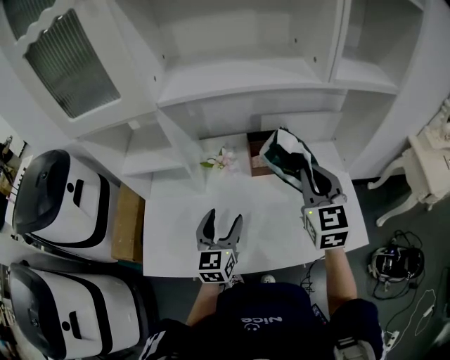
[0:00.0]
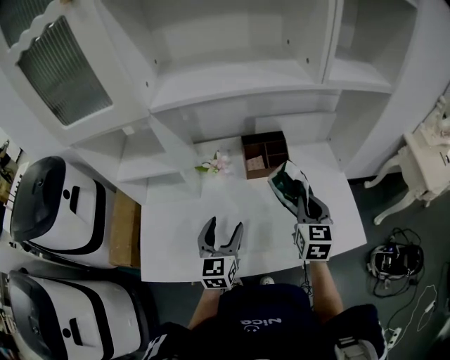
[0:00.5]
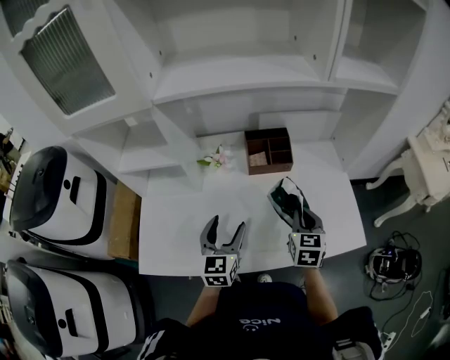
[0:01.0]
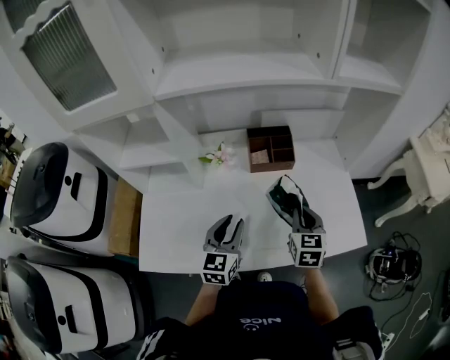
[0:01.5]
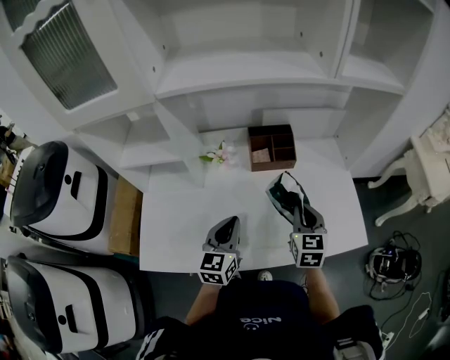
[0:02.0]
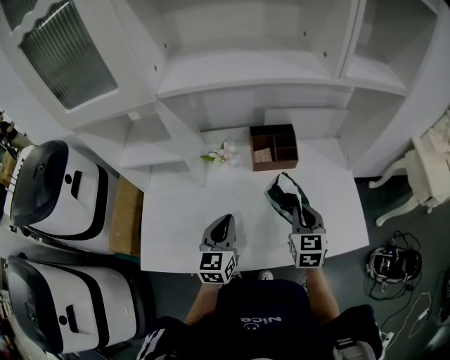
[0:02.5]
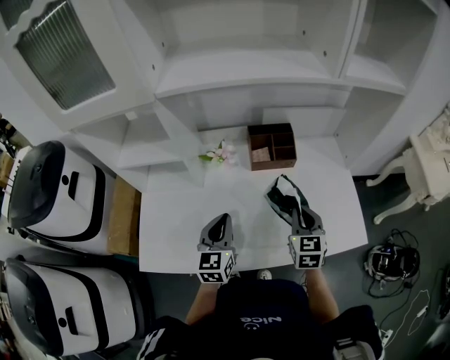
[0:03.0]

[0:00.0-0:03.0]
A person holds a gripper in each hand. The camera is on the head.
0:00.0 to 0:01.5: The left gripper moves about 5 cm, and closes its fingers, while the right gripper heads downward, covering approximately 20 cm, and swivels about 20 degrees.
0:01.5 to 0:03.0: The left gripper closes its fingers.

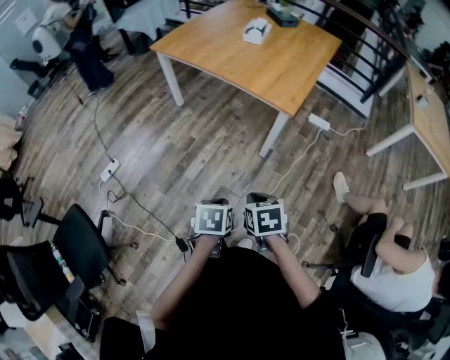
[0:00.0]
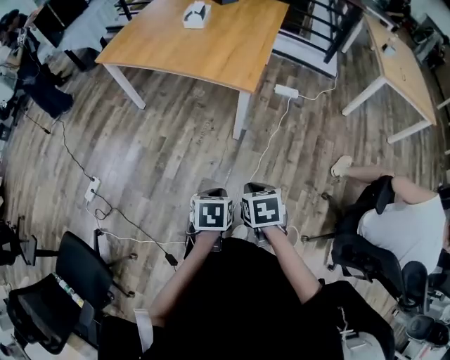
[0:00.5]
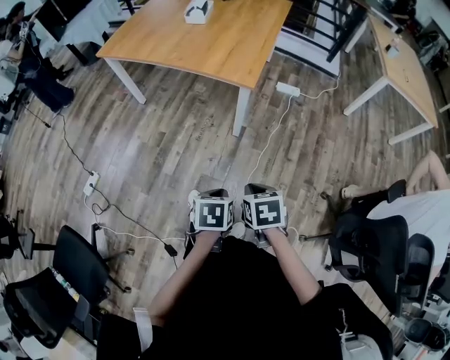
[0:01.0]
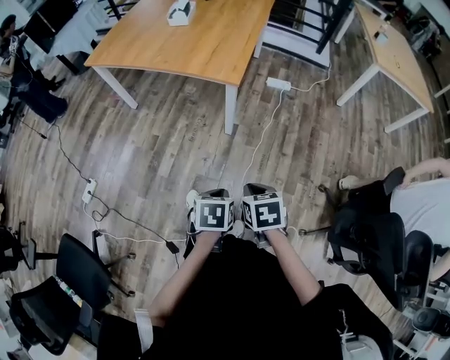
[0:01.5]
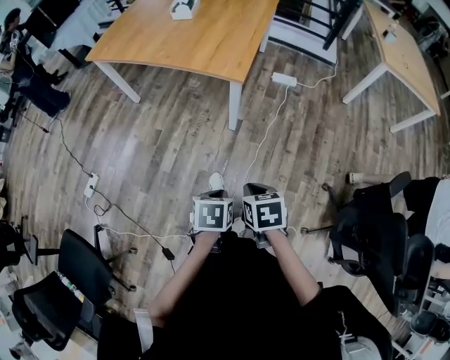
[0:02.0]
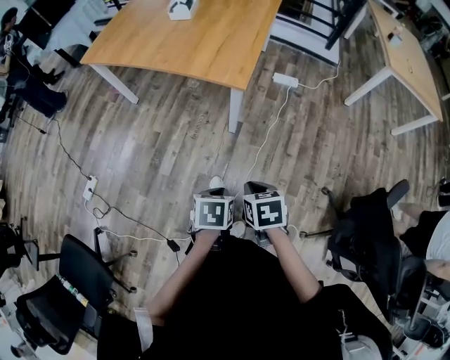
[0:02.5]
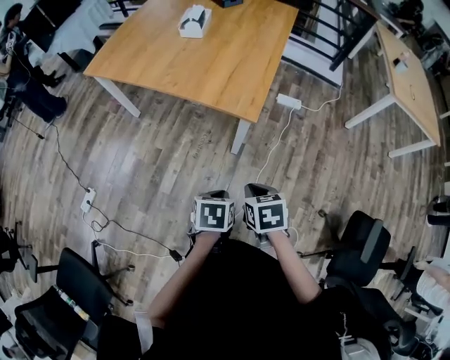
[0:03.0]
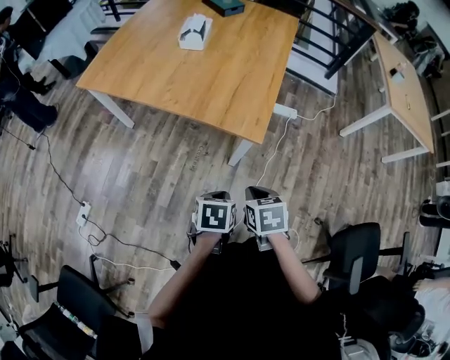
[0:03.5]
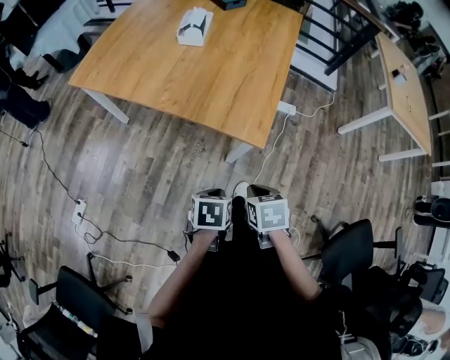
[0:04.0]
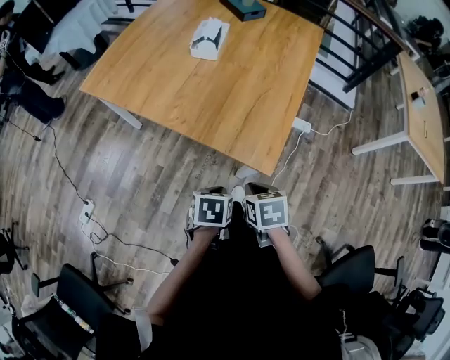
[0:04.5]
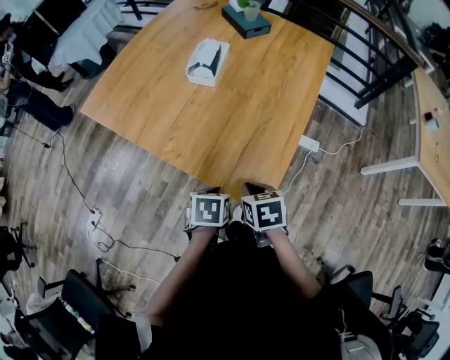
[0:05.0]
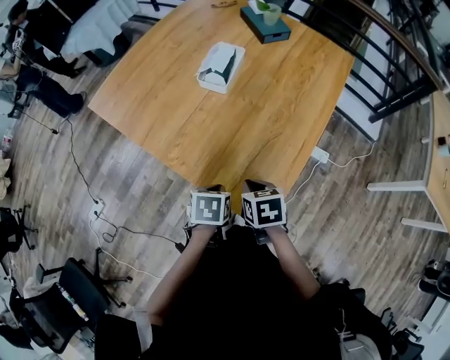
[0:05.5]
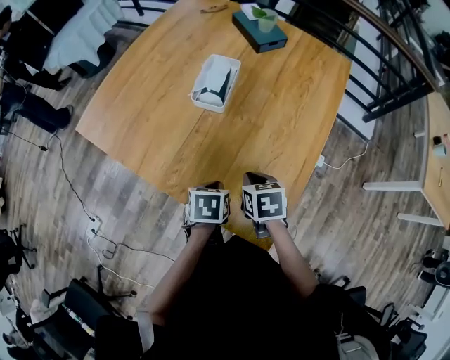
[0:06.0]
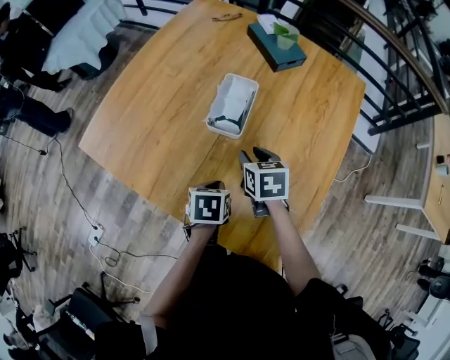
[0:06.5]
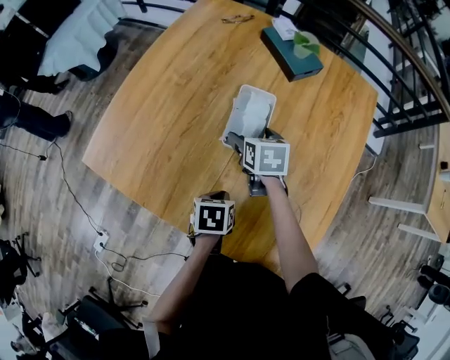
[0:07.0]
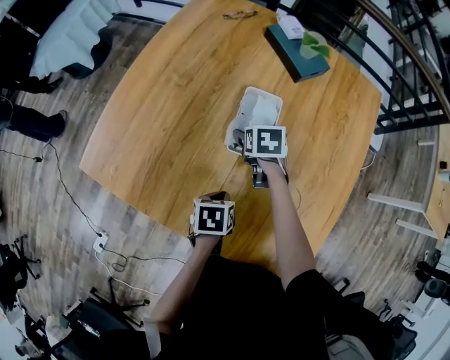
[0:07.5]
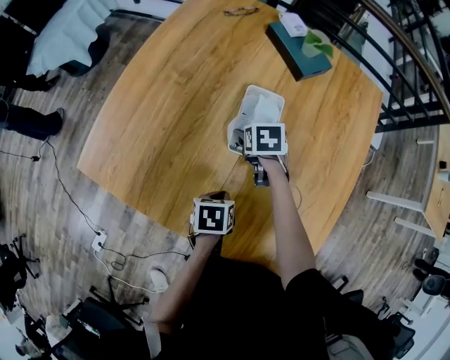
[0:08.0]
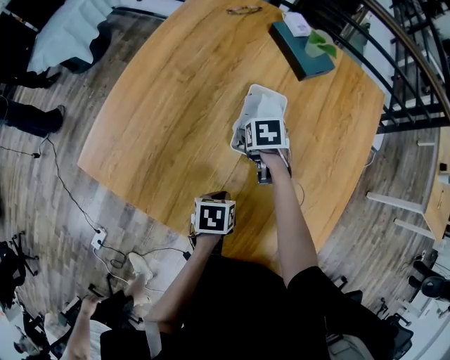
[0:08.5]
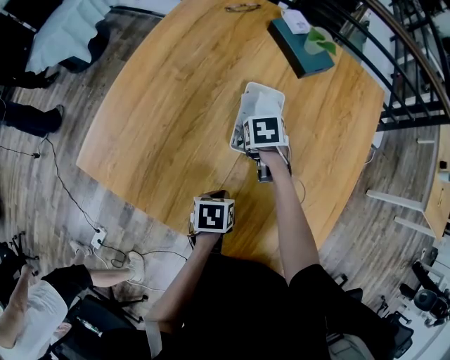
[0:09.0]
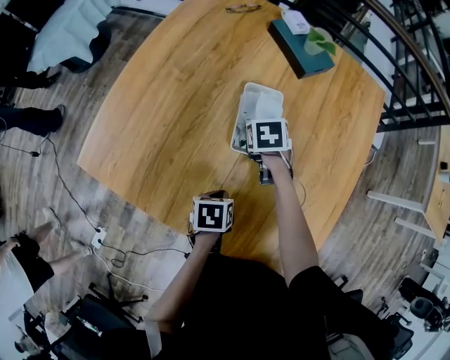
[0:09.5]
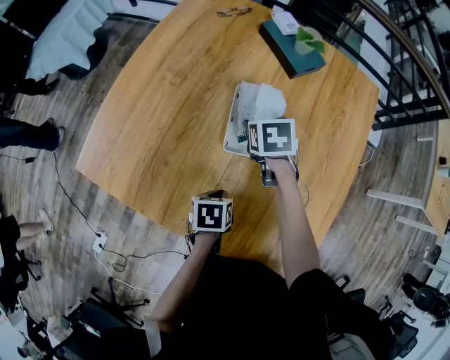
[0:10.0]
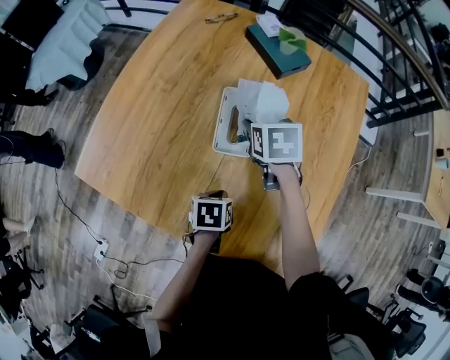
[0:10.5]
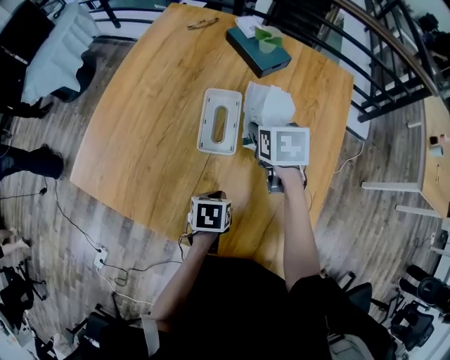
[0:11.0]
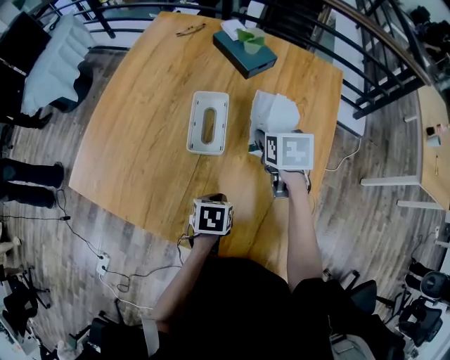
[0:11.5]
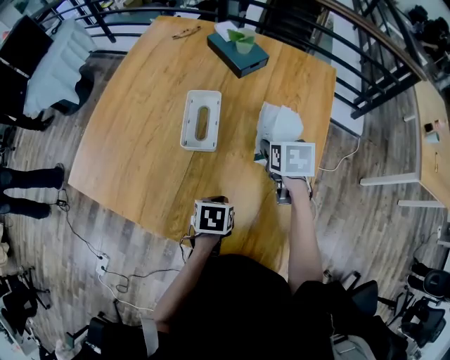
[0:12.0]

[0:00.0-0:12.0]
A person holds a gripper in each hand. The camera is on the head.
0:00.0 to 0:02.0: The two grippers go roughly 15 cm to the right.
0:02.0 to 0:04.0: Both grippers travel together forward, some 30 cm.
0:04.0 to 0:06.0: Both grippers travel together forward, about 40 cm.
0:06.0 to 0:08.0: The right gripper is displaced forward and to the left by about 35 cm, and opens its fingers. Meanwhile the left gripper goes about 20 cm to the left and forward.
0:08.0 to 0:10.0: The right gripper shifts about 5 cm upward, and closes.
0:10.0 to 0:12.0: The right gripper moves to the right, some 20 cm; the left gripper travels to the right by approximately 15 cm.

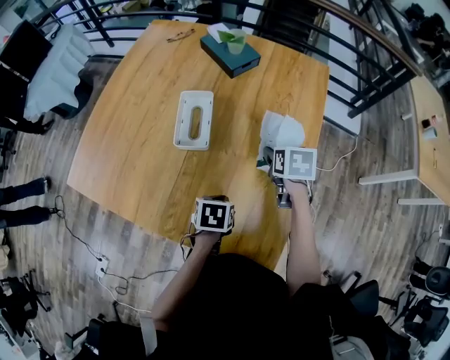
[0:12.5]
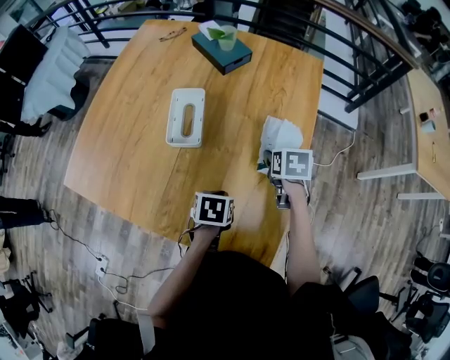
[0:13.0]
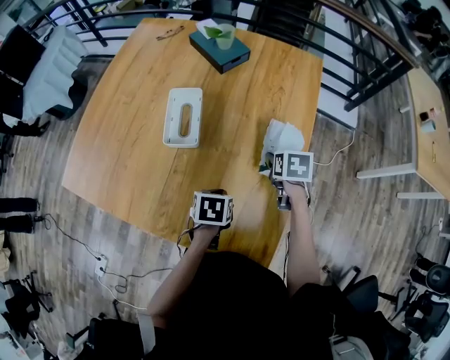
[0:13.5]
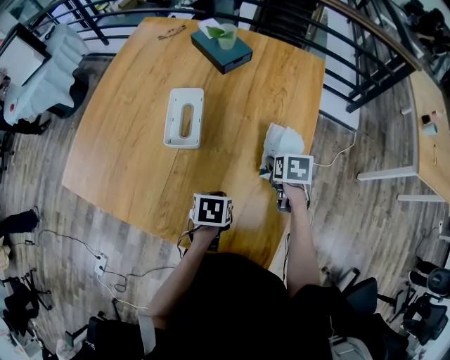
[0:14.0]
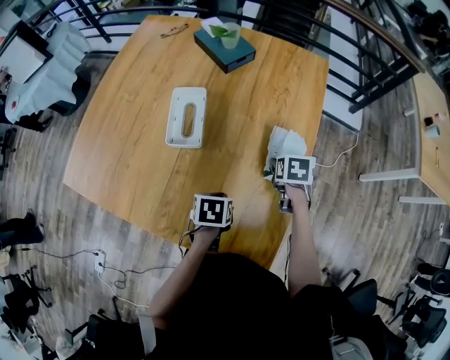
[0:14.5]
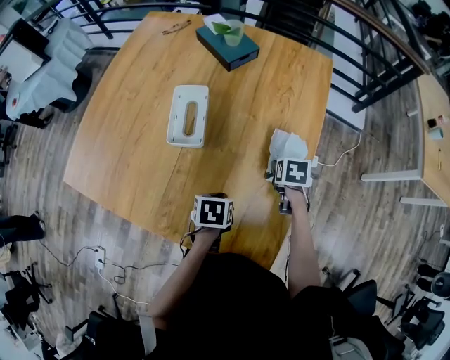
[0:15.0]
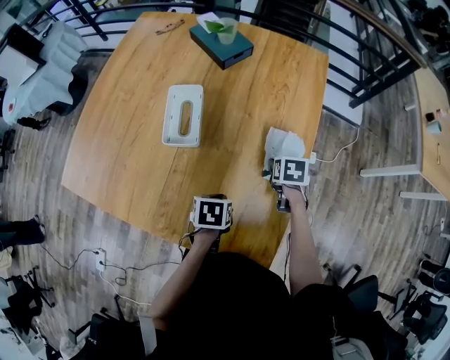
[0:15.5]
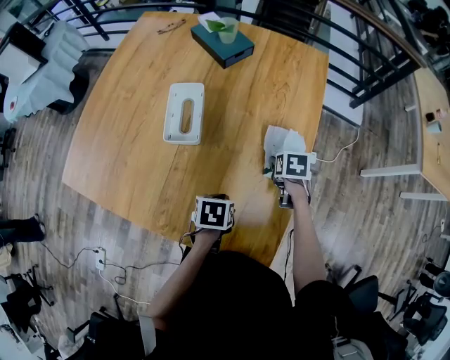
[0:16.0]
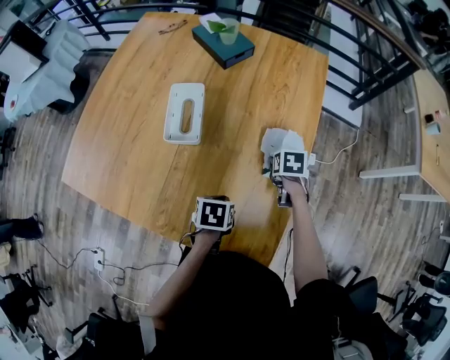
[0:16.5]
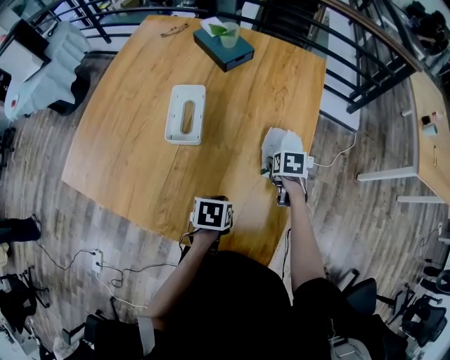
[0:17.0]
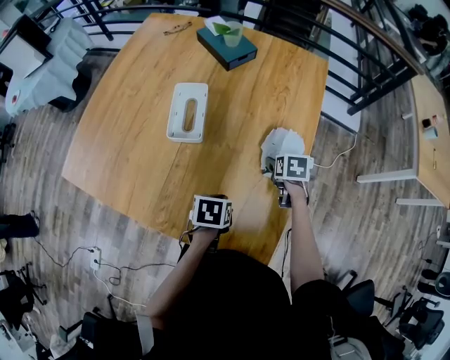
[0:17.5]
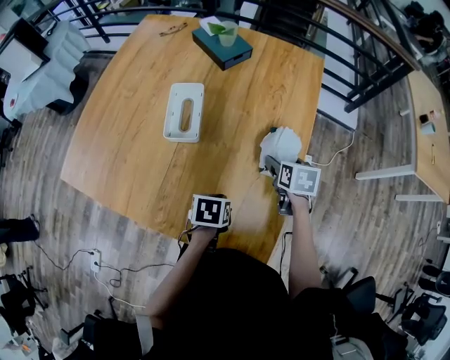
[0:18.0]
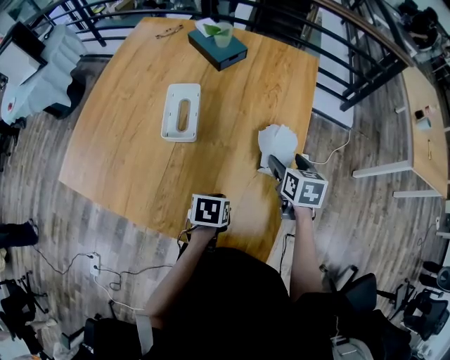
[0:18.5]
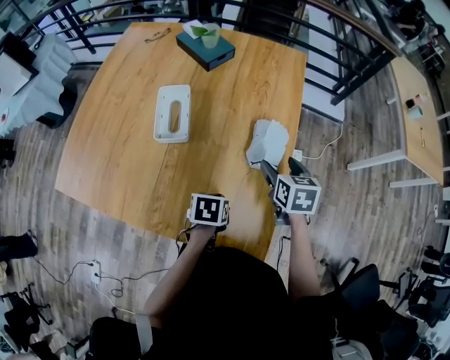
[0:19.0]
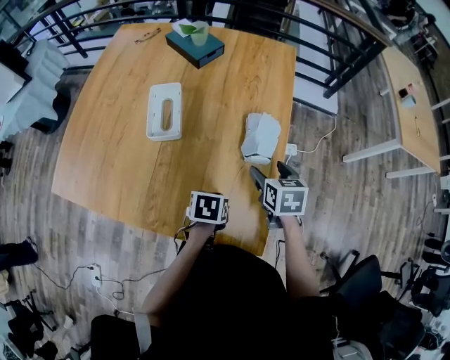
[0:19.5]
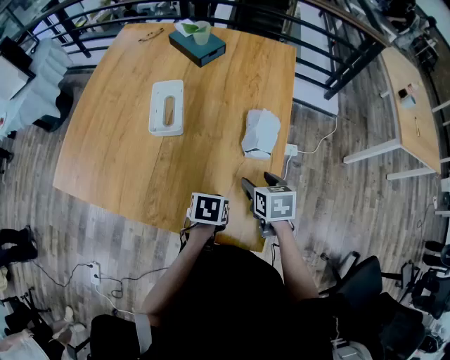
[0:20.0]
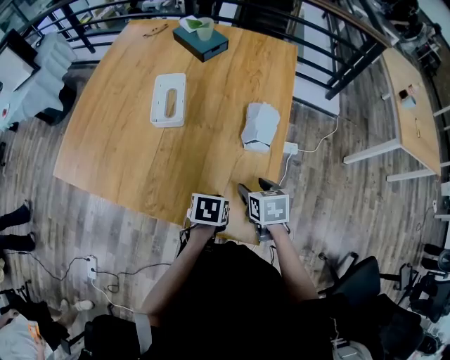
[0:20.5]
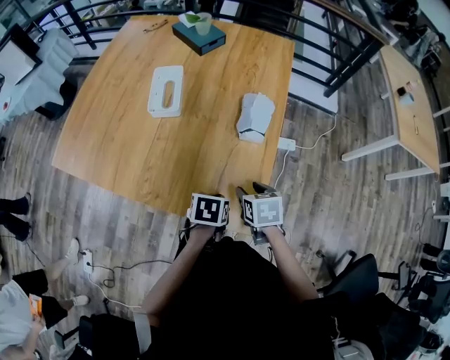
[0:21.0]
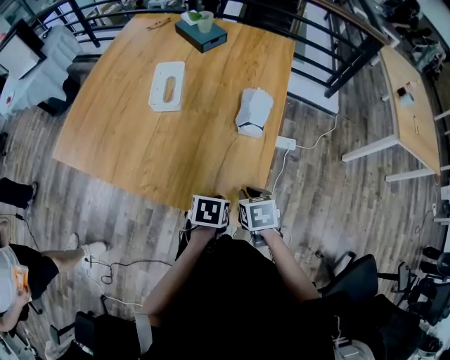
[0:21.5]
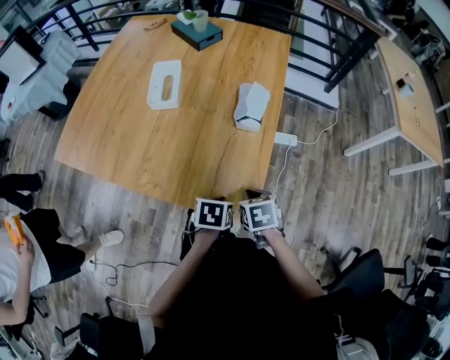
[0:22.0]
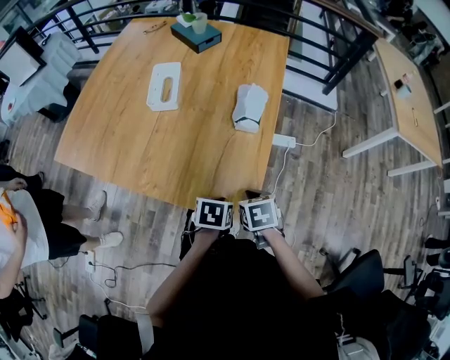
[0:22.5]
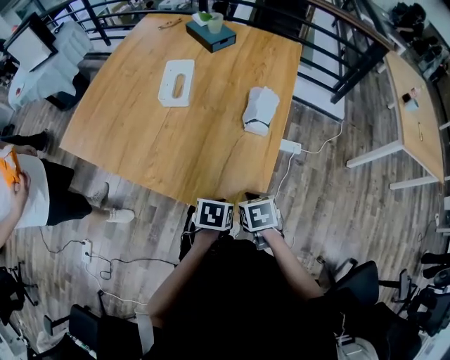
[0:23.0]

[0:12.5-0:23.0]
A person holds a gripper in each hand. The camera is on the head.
0:12.5 to 0:14.5: The right gripper goes approximately 10 cm downward and to the right.
0:14.5 to 0:16.5: There are only small adjustments of the grippers.
0:16.5 to 0:19.0: The right gripper travels upward and backward by roughly 15 cm, and changes its angle by about 30 degrees.
0:19.0 to 0:21.0: The left gripper moves backward and to the right, approximately 10 cm, while the right gripper travels backward and downward by approximately 20 cm.
0:21.0 to 0:23.0: Both grippers travel together backward, some 5 cm. The right gripper closes up.

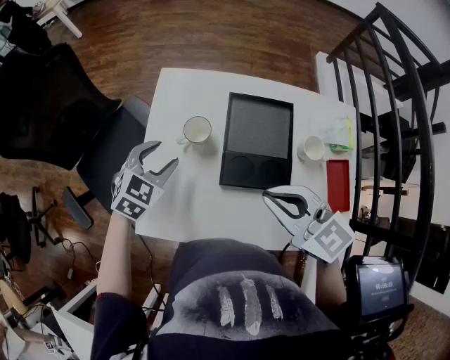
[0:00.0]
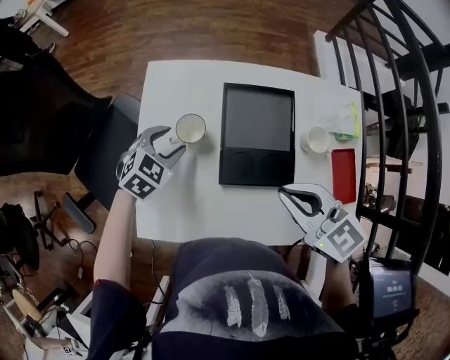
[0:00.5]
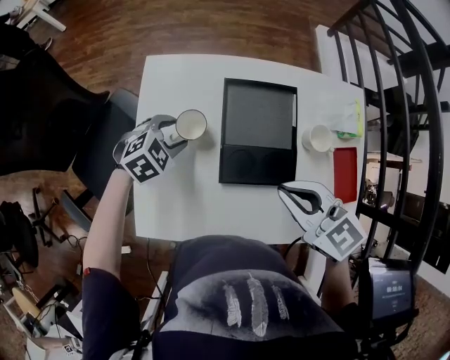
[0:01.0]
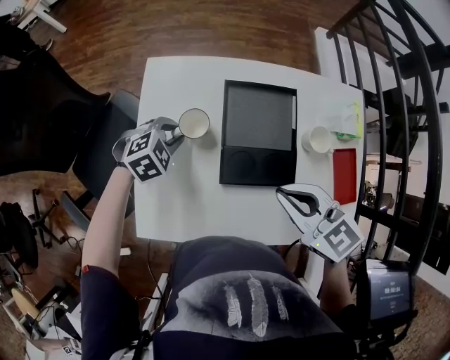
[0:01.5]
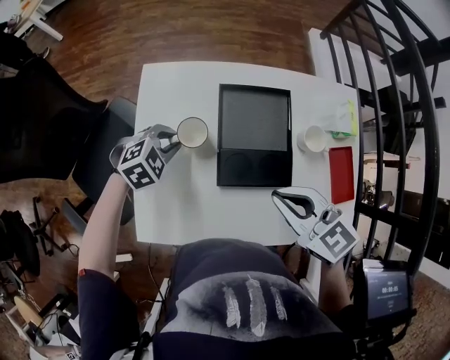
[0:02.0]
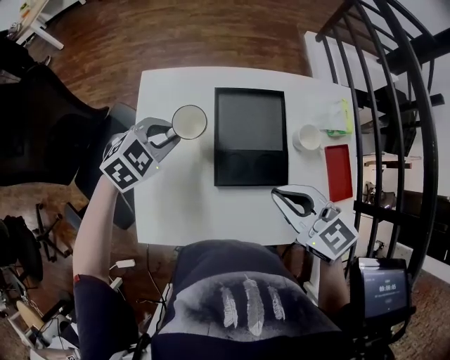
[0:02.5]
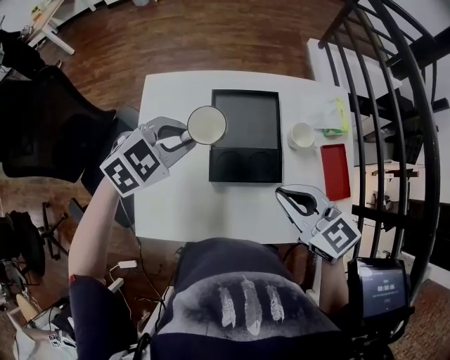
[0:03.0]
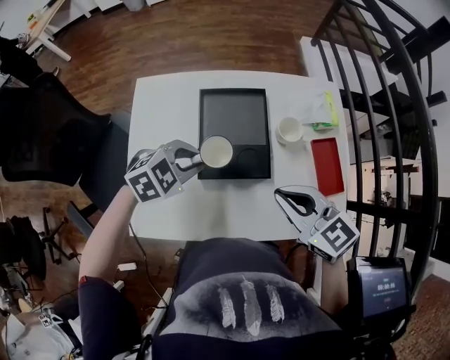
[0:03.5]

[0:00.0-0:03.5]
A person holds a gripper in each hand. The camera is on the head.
0:00.0 to 0:02.0: The left gripper is displaced downward by approximately 5 cm, rotates approximately 30 degrees, and closes its fingers, while the right gripper ends up approximately 5 cm from where it was.
0:02.0 to 0:03.5: The left gripper goes approximately 20 cm to the right, upward and backward; the right gripper shifts some 10 cm to the right.
